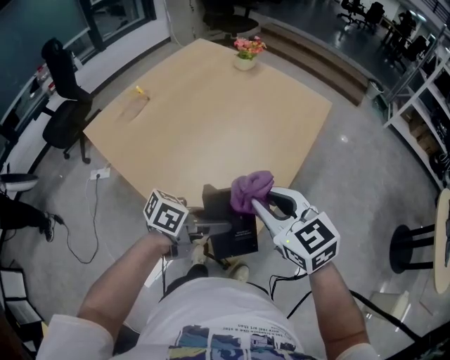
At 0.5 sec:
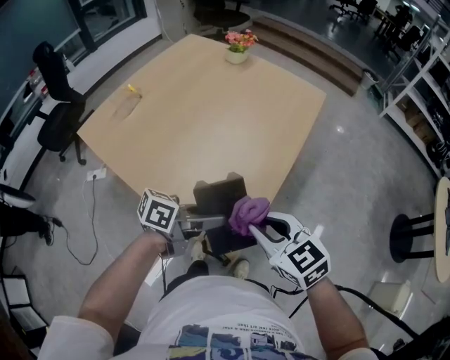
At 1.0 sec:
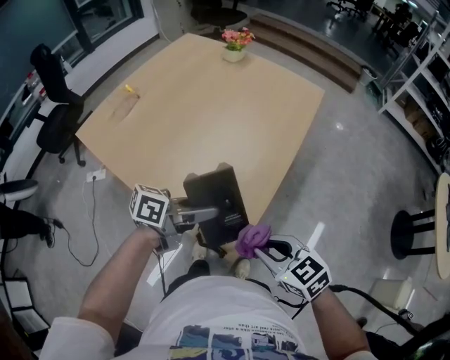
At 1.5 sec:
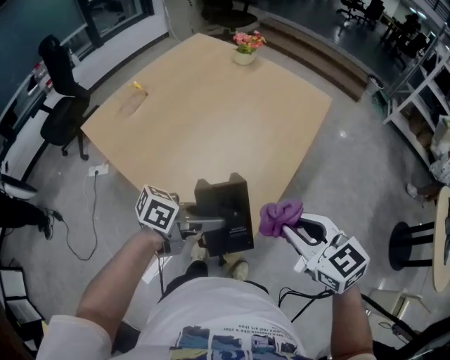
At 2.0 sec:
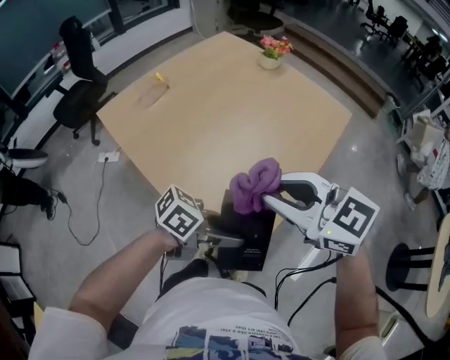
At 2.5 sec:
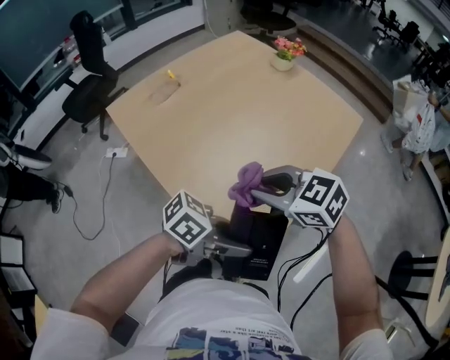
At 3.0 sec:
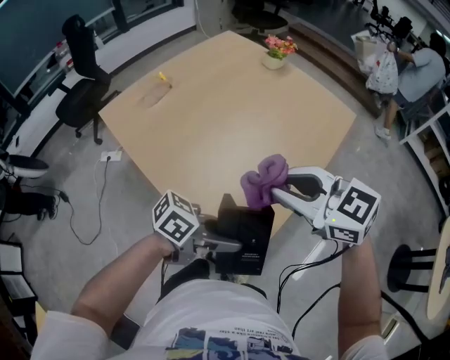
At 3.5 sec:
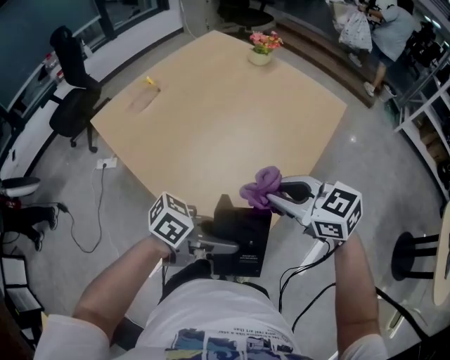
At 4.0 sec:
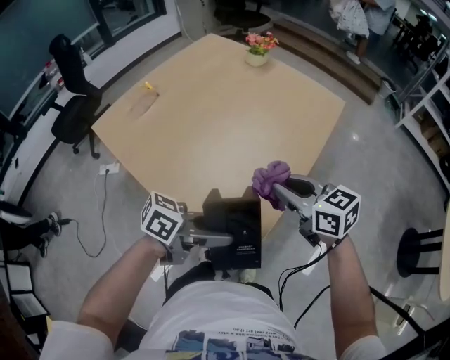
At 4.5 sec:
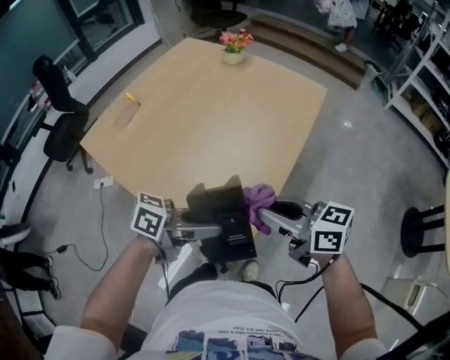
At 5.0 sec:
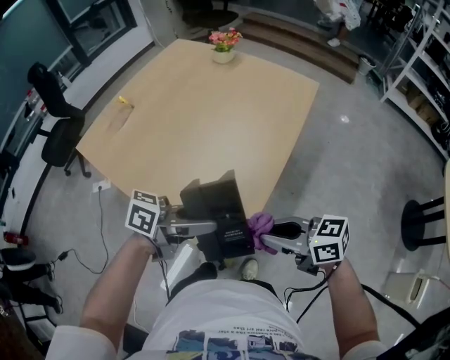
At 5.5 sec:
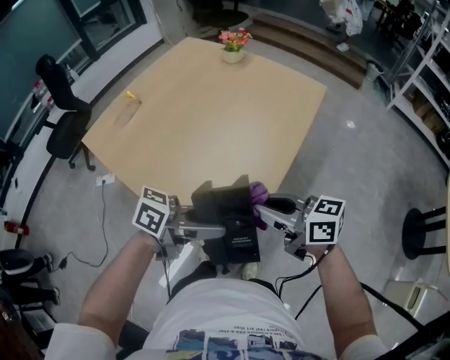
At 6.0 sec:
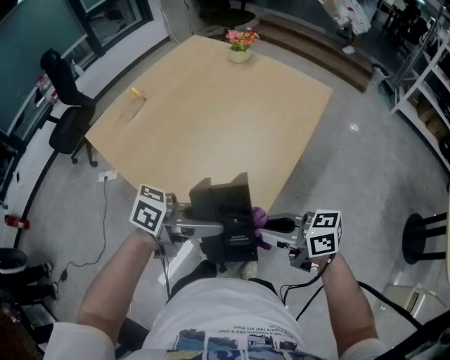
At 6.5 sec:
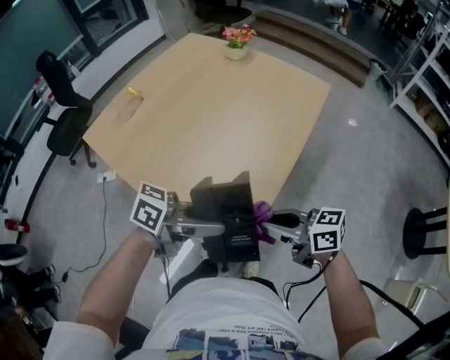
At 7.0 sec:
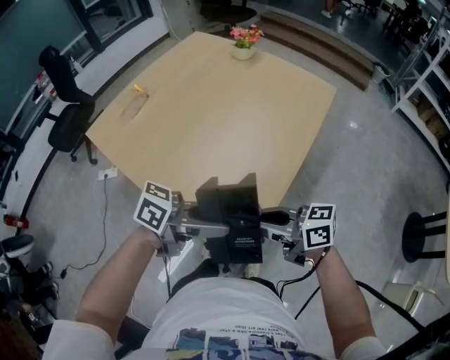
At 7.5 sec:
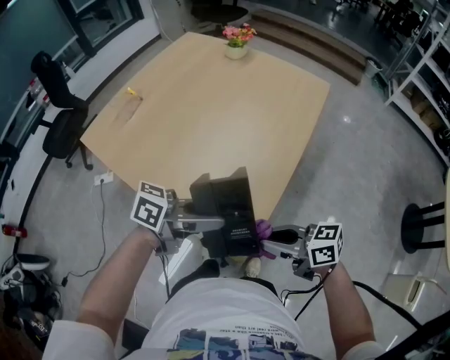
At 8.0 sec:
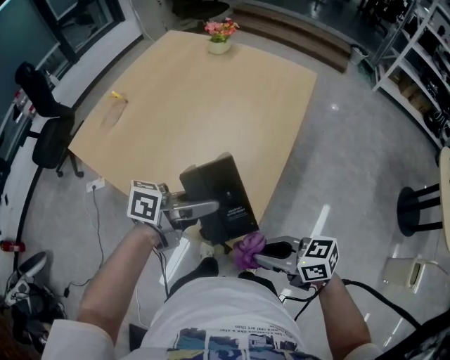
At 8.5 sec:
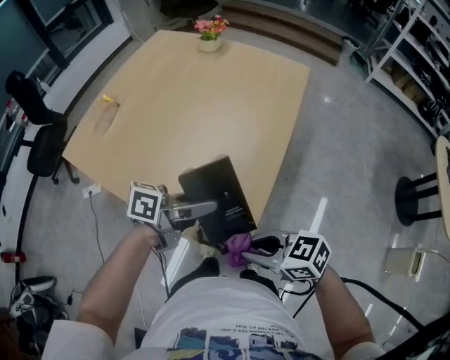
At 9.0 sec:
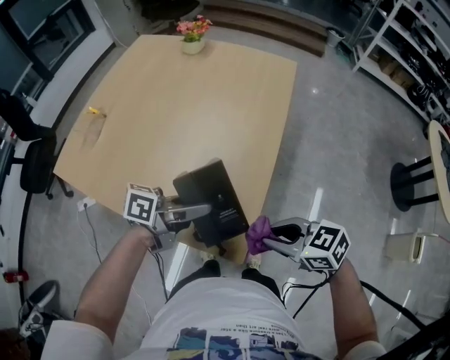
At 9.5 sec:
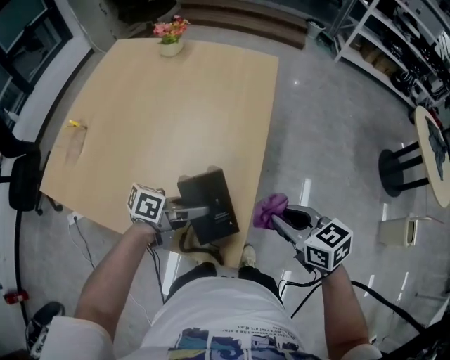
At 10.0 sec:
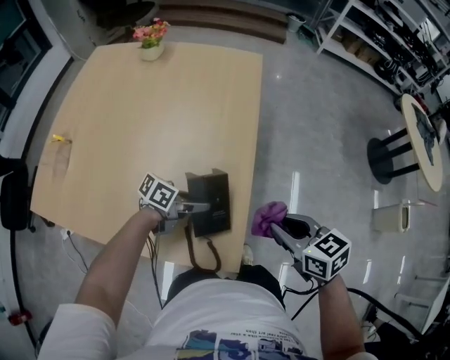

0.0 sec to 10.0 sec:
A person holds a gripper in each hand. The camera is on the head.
0.0 sec to 2.0 sec: The right gripper moves upward, roughly 5 cm, and rotates about 30 degrees.
2.0 sec to 4.0 sec: The right gripper moves up and down over approximately 10 cm, changing direction 2 times, and swivels some 30 degrees.
4.0 sec to 6.0 sec: The right gripper changes place by some 15 cm, and changes its angle by approximately 30 degrees.
6.0 sec to 8.0 sec: The right gripper shifts by about 10 cm. The left gripper shifts by approximately 5 cm.
8.0 sec to 10.0 sec: The right gripper ends up some 10 cm from where it was, and changes its angle by about 50 degrees. Meanwhile the left gripper shifts roughly 15 cm downward, and turns by approximately 30 degrees.

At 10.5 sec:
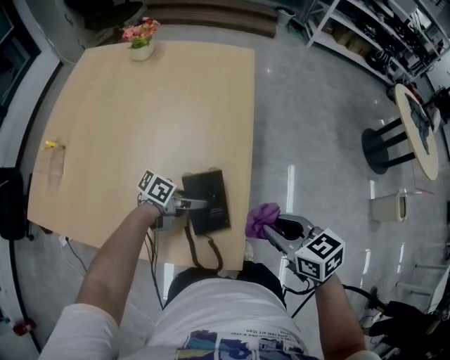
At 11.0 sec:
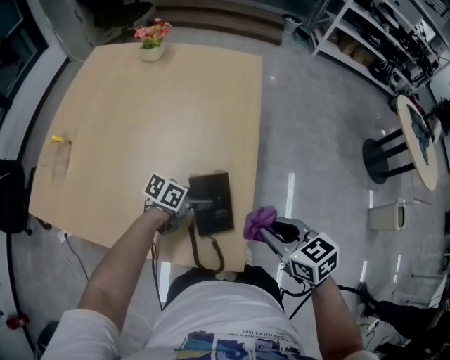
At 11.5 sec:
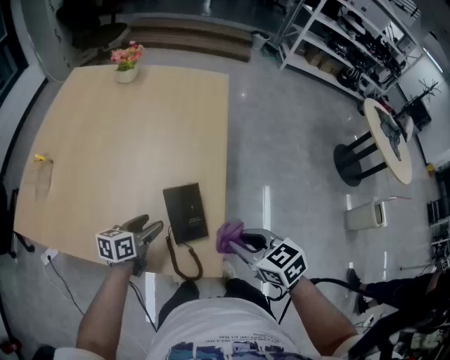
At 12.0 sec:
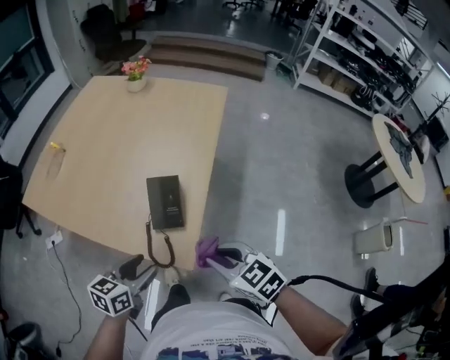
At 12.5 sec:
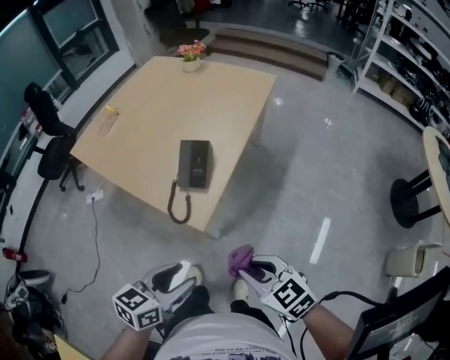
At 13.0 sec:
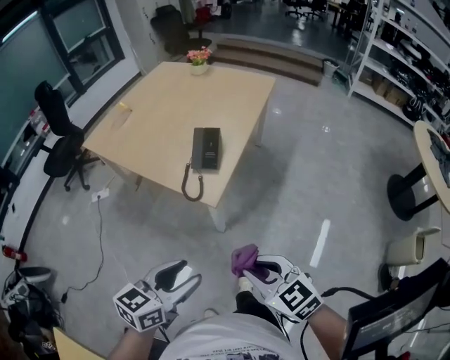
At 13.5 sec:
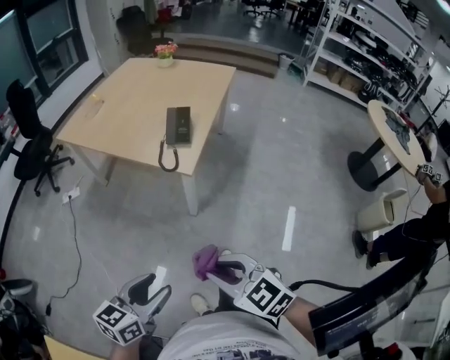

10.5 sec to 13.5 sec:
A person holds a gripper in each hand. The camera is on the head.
10.5 sec to 12.0 sec: The right gripper moves about 10 cm, and turns by about 30 degrees. Meanwhile the left gripper moves roughly 20 cm, and turns by about 50 degrees.
12.0 sec to 13.5 sec: The grippers both shift backward by approximately 40 cm.

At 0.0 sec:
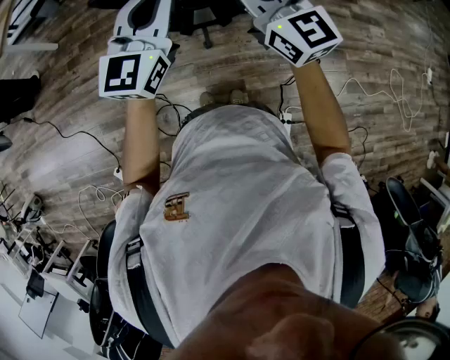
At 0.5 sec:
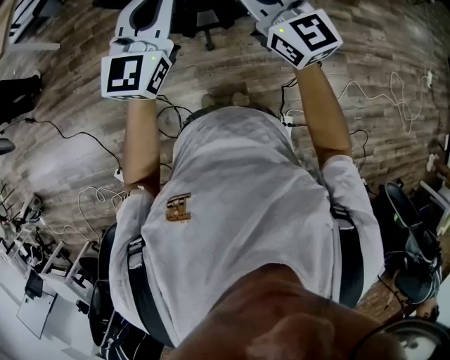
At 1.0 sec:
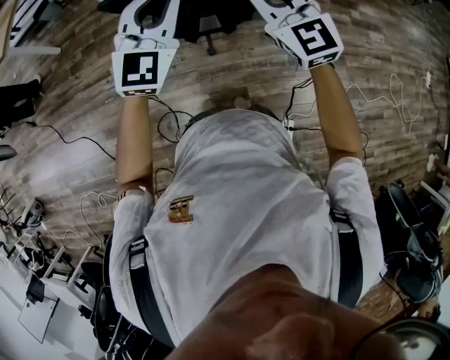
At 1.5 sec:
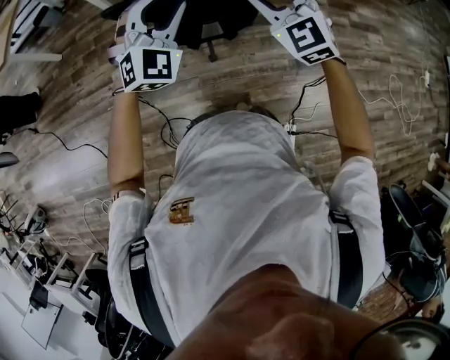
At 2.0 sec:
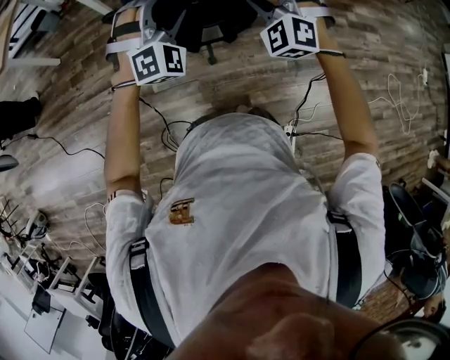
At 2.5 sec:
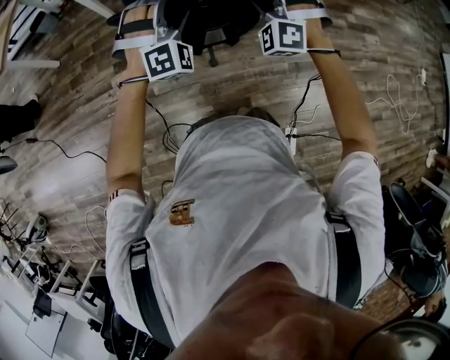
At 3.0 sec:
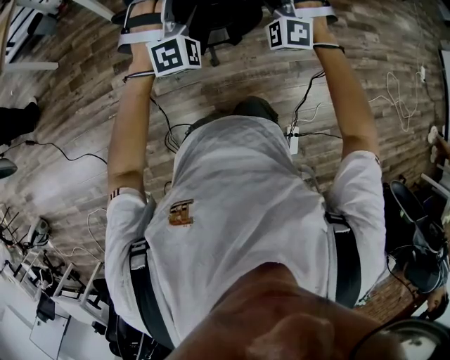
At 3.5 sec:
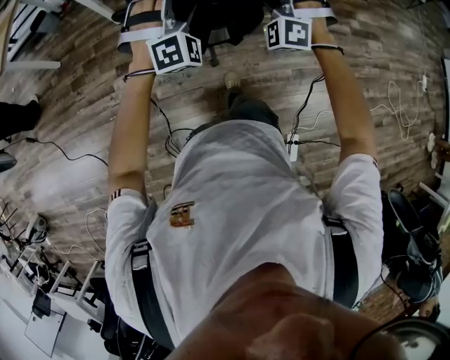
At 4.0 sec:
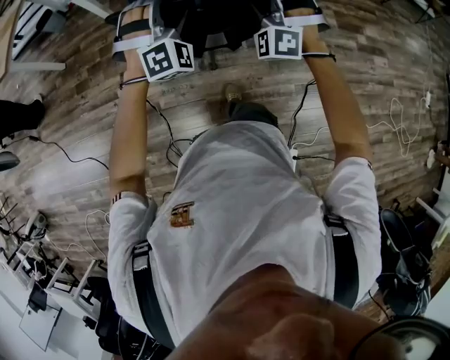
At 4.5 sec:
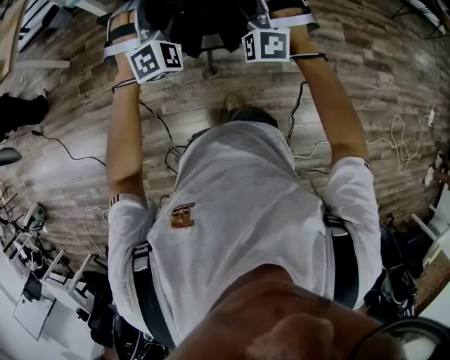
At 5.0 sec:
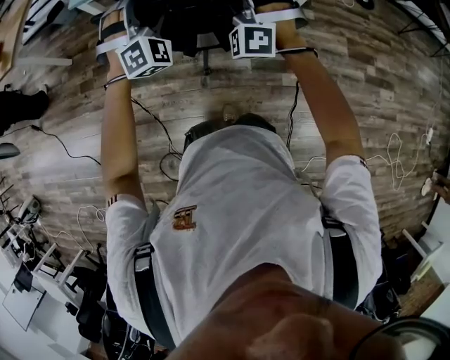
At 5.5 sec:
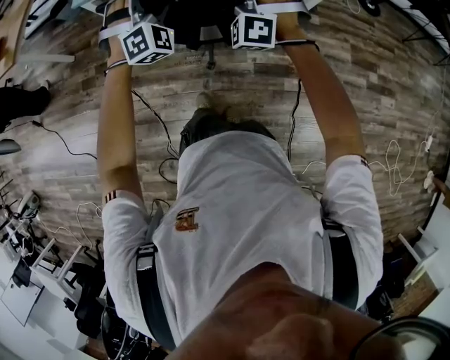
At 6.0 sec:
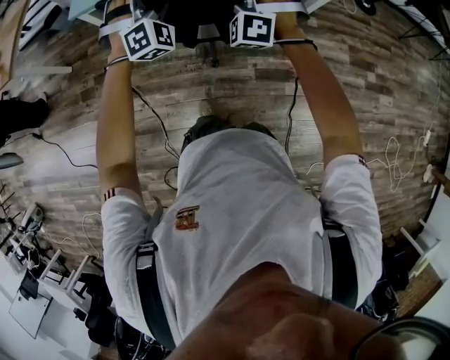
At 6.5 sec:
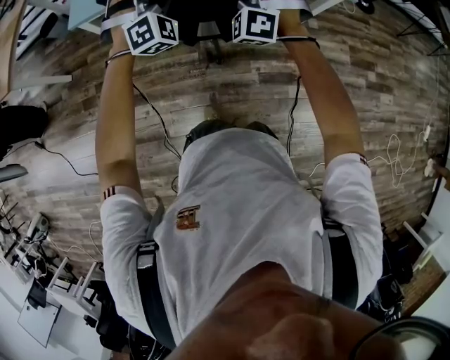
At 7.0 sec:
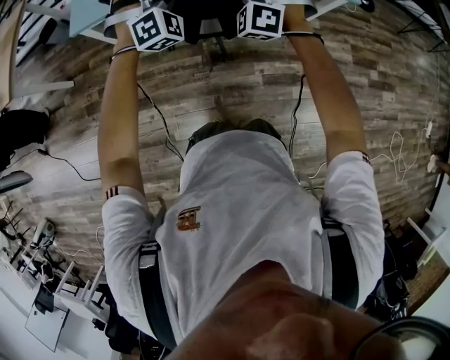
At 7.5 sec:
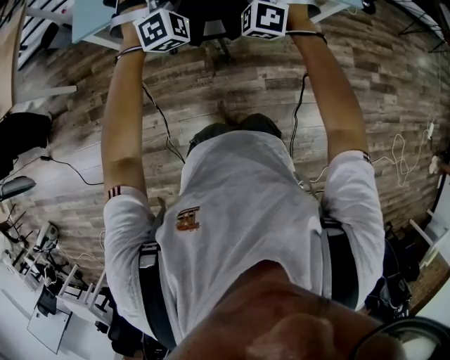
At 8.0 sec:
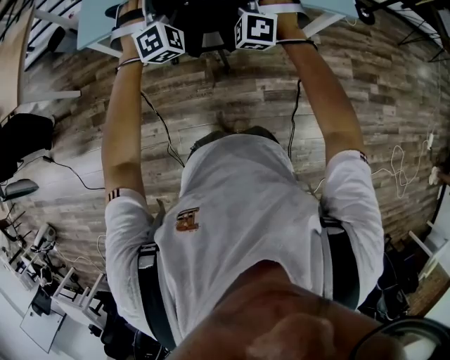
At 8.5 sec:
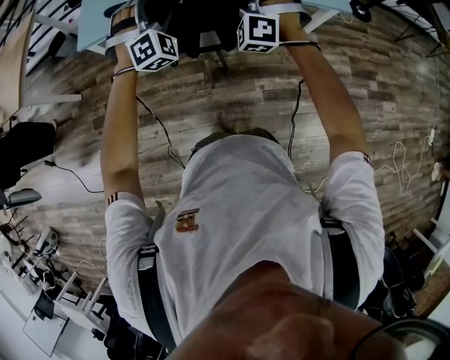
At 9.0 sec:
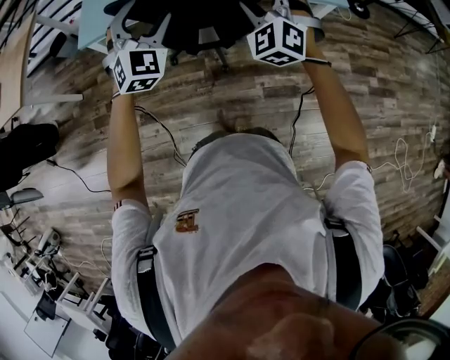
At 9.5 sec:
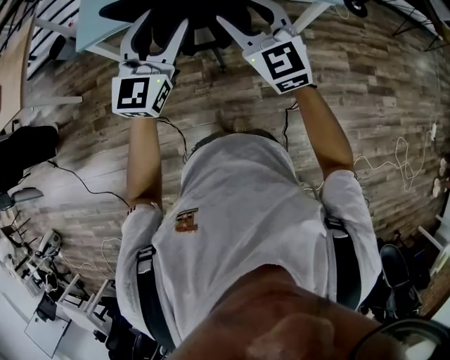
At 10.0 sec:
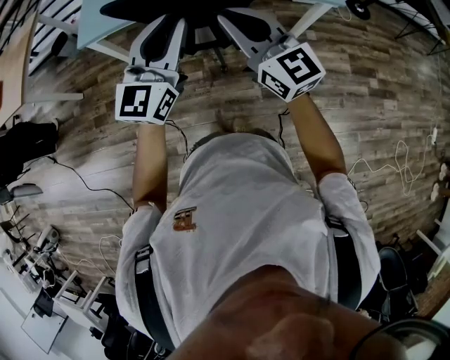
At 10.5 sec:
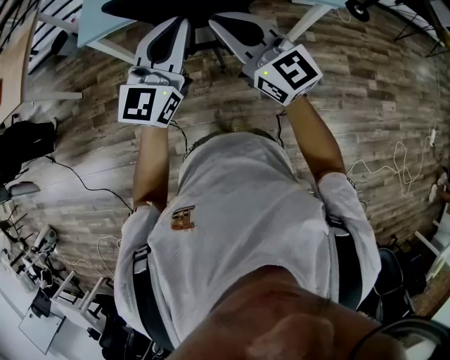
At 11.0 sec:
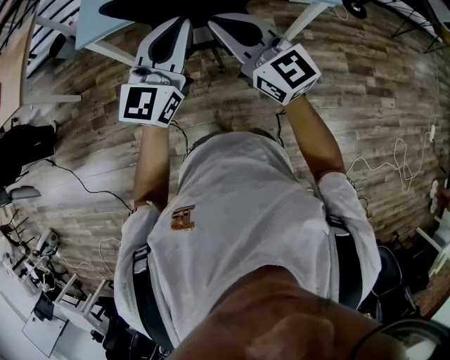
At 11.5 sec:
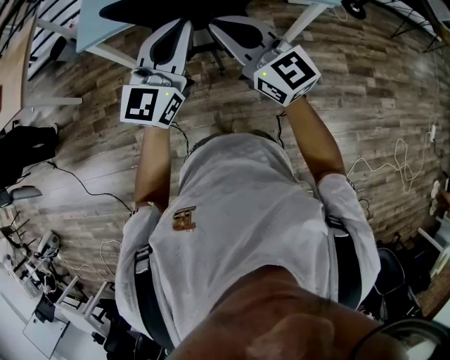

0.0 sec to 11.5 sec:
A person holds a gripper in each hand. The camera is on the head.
0.0 sec to 2.0 sec: The two grippers go about 15 cm forward and downward. The left gripper rolls clockwise, seen from behind, by roughly 60 degrees, and opens up. The right gripper rolls counterclockwise, seen from behind, by about 60 degrees, and opens up.
2.0 sec to 4.0 sec: Both grippers travel together forward, about 20 cm.
4.0 sec to 6.0 sec: The grippers both shift forward by about 35 cm.
6.0 sec to 7.5 sec: The grippers both shift forward by some 15 cm.
7.5 sec to 9.5 sec: Both grippers travel together backward and upward, some 25 cm. The left gripper rotates around the line of its fingers by about 60 degrees, counterclockwise from behind, while the right gripper rotates around the line of its fingers by approximately 60 degrees, clockwise from behind.
9.5 sec to 11.5 sec: The left gripper shifts by approximately 5 cm, and closes, while the right gripper is displaced backward by some 5 cm, rotates about 30 degrees, and closes its fingers.

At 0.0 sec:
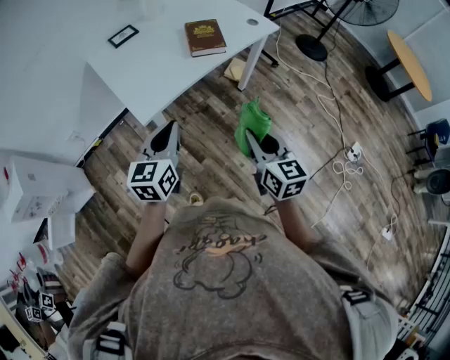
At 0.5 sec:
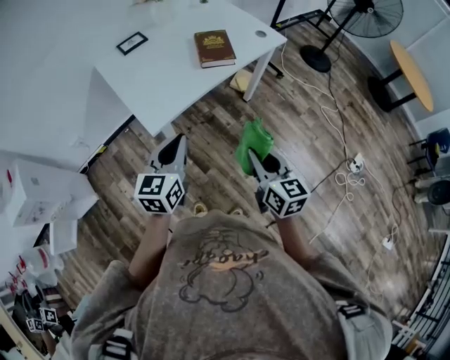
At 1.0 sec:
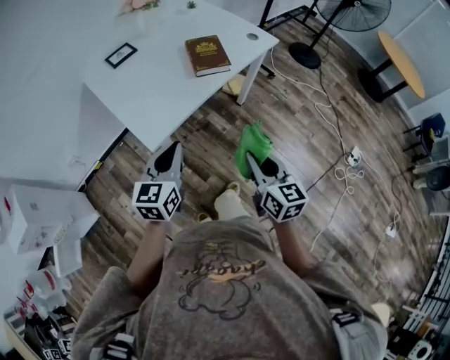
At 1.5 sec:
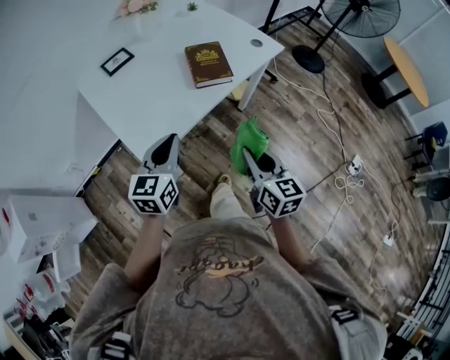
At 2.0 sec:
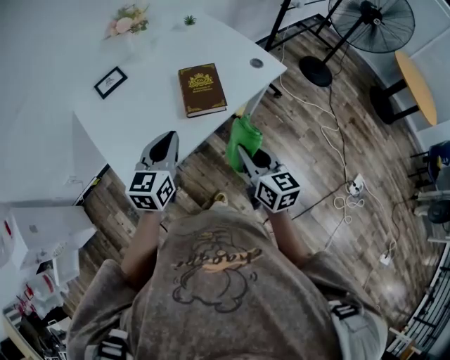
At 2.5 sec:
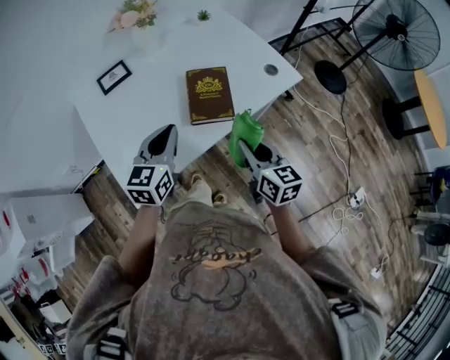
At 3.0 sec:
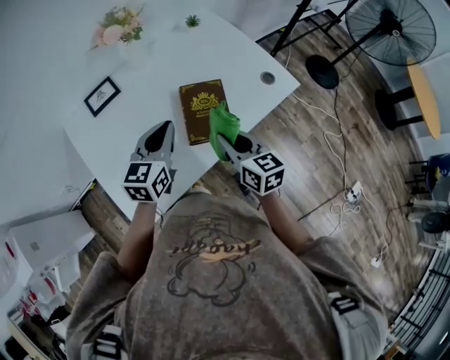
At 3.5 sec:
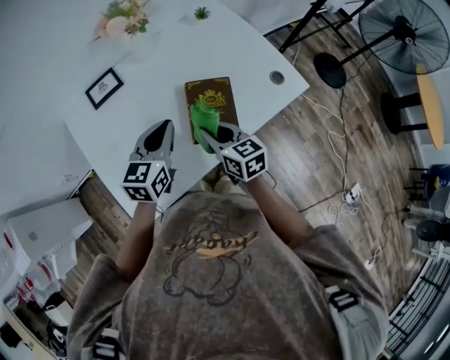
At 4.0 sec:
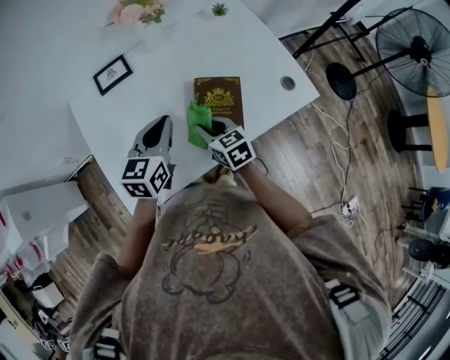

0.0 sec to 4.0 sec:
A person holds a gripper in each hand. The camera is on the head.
0.0 sec to 2.0 sec: Both grippers travel together forward, about 30 cm.
2.0 sec to 4.0 sec: The left gripper heads forward, covering roughly 20 cm. The right gripper shifts some 35 cm forward, downward and to the left, and rotates some 40 degrees.
